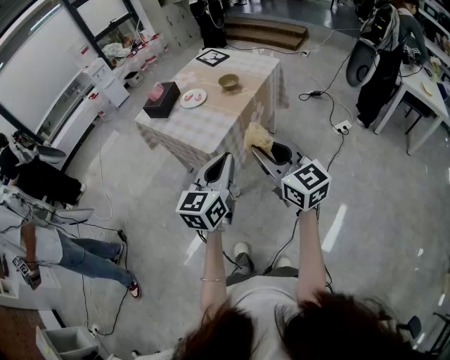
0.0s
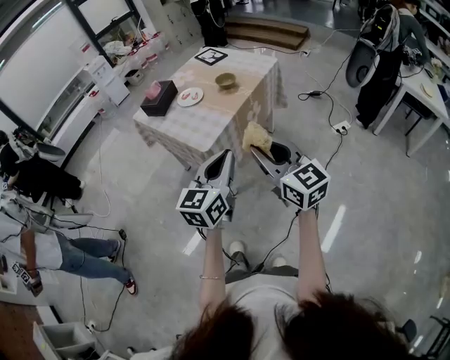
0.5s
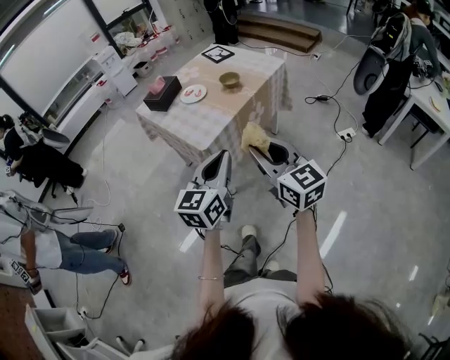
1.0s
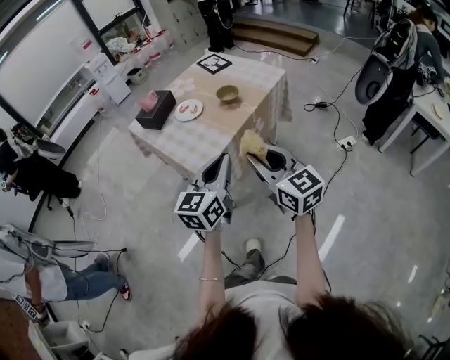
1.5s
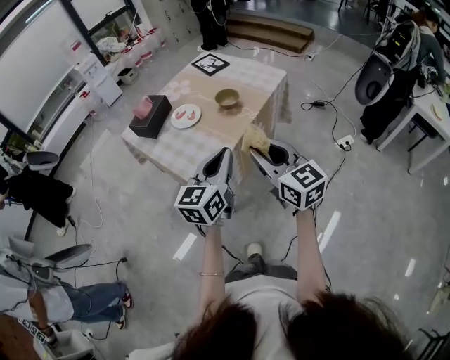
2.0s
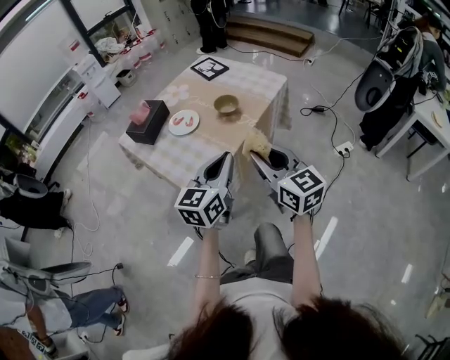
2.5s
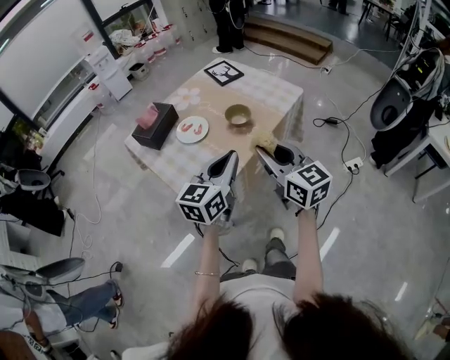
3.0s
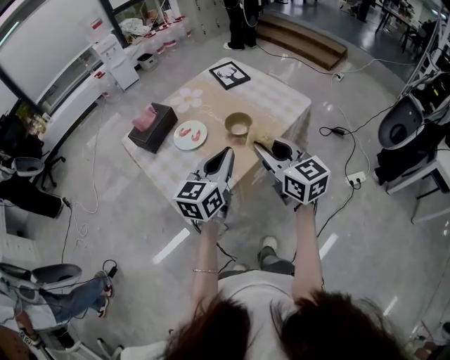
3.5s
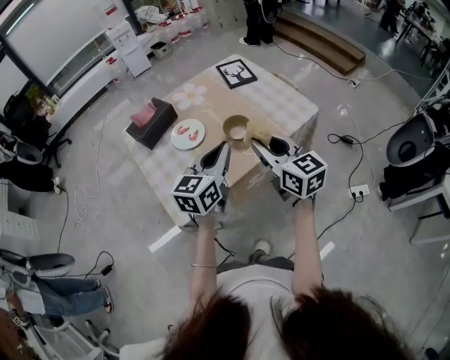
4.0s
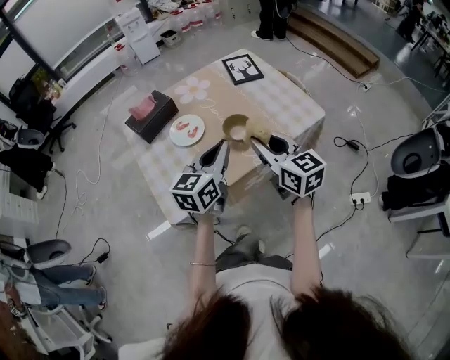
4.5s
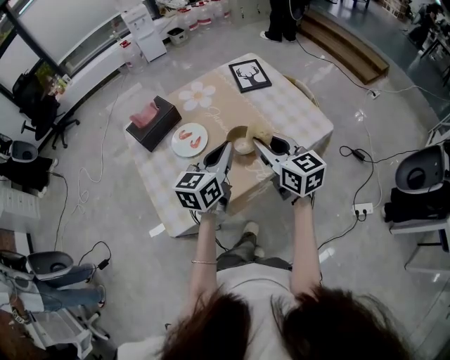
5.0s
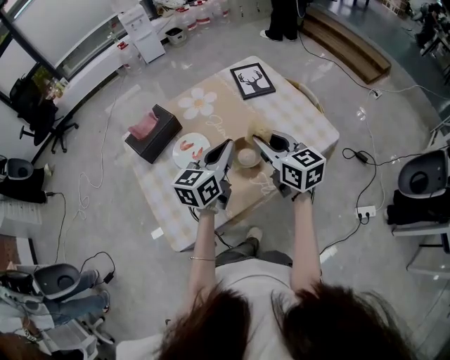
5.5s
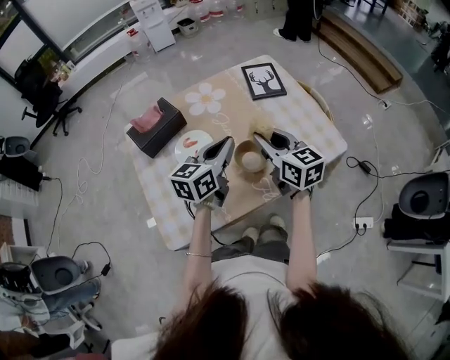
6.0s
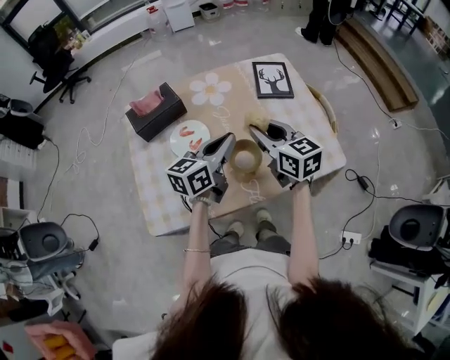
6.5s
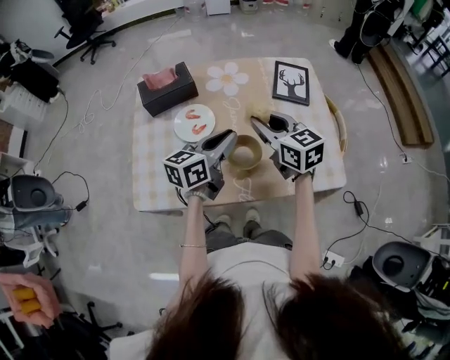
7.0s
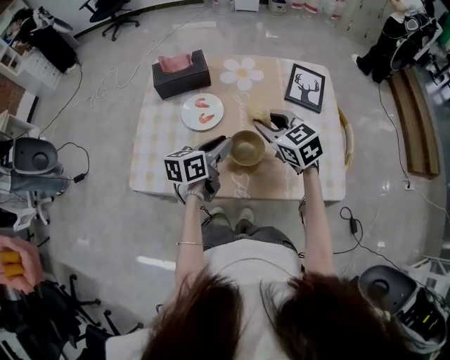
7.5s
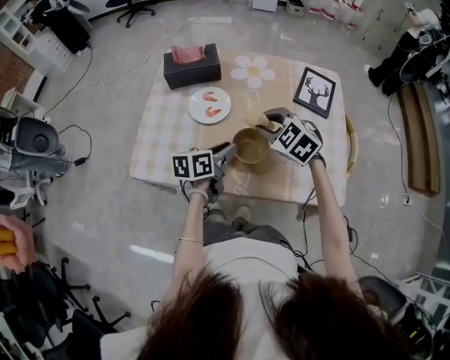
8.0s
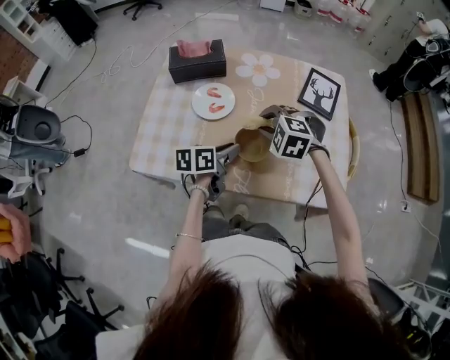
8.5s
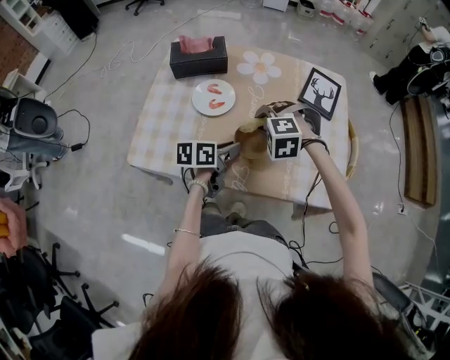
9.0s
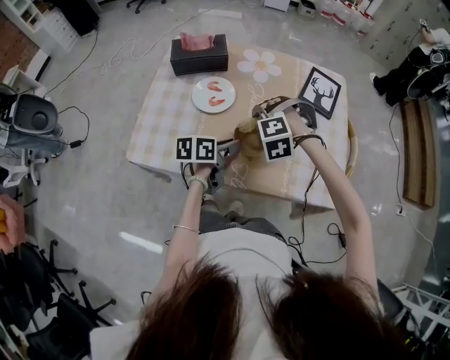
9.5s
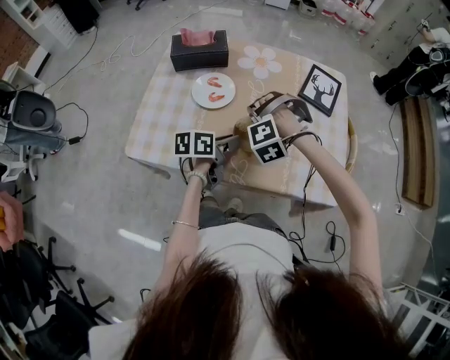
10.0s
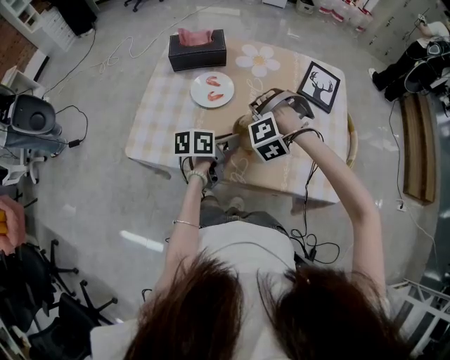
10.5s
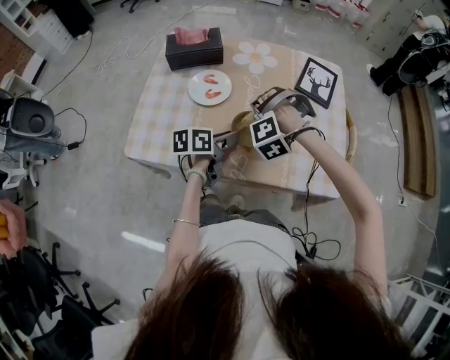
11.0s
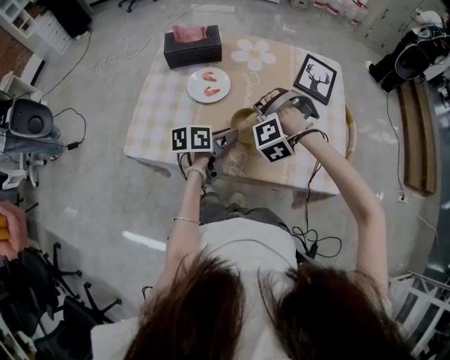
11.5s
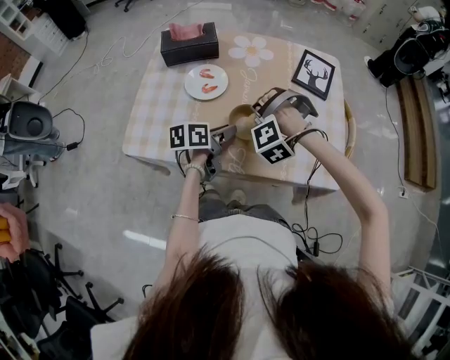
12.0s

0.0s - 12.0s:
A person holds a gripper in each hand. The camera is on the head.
0.0s - 2.0s: The grippers both shift forward by about 20 cm.
2.0s - 4.0s: The two grippers go some 25 cm forward.
4.0s - 6.0s: The two grippers go roughly 20 cm forward.
6.0s - 8.0s: The left gripper is displaced downward by some 15 cm, changes its angle by about 40 degrees, and opens up. Meanwhile the right gripper goes approximately 5 cm downward, and points its fingers about 30 degrees further downward.
8.0s - 10.0s: The right gripper travels downward by roughly 5 cm, and rotates around the line of its fingers by approximately 60 degrees, counterclockwise from behind.
10.0s - 12.0s: The grippers make only small movements.

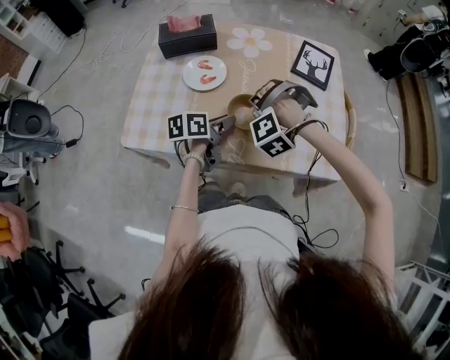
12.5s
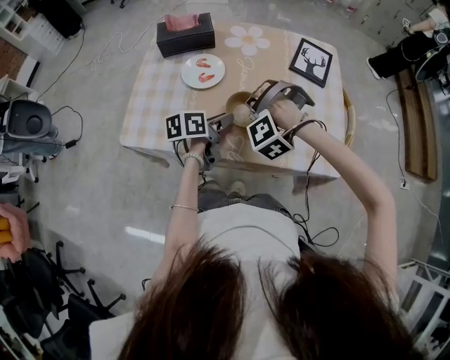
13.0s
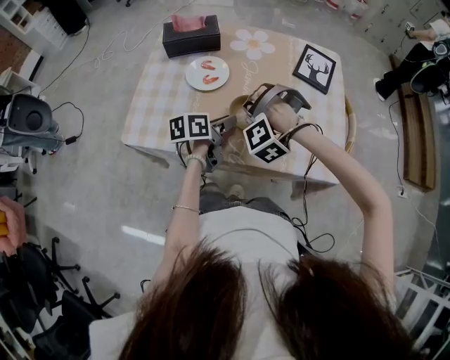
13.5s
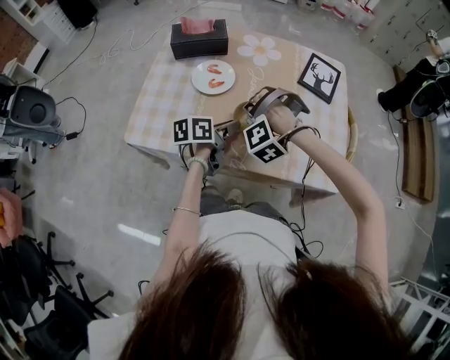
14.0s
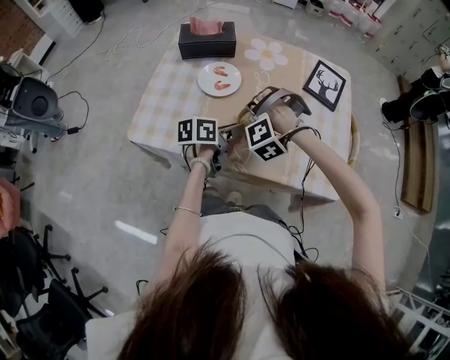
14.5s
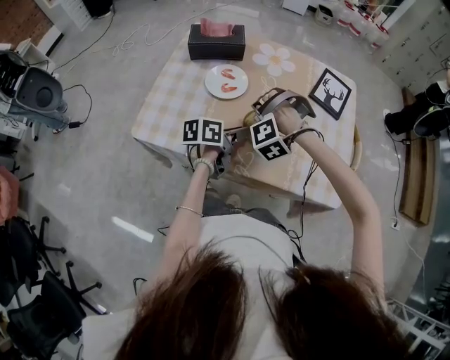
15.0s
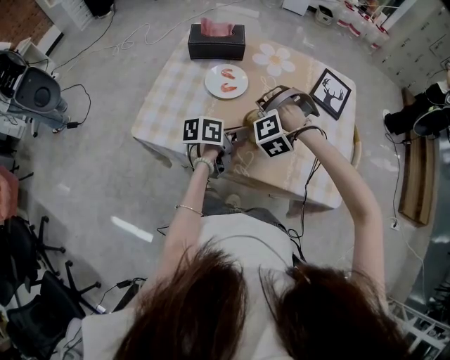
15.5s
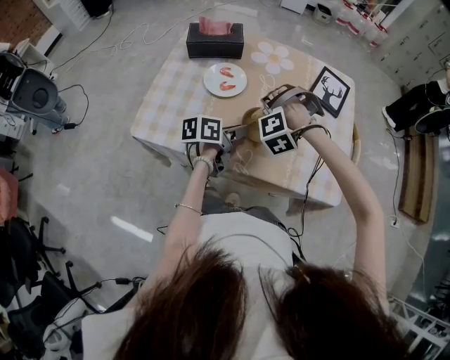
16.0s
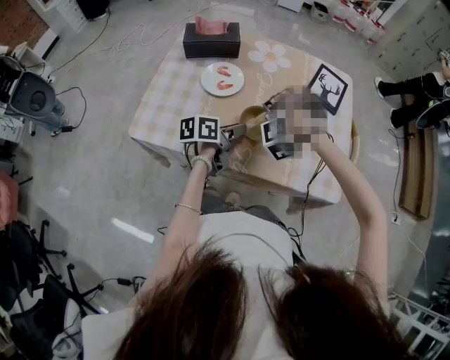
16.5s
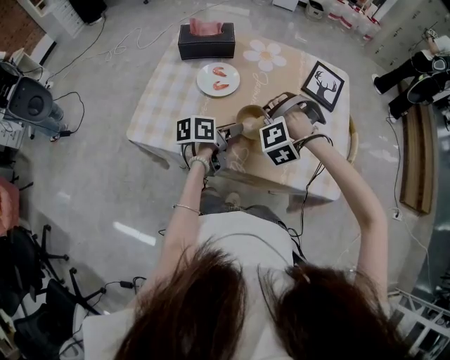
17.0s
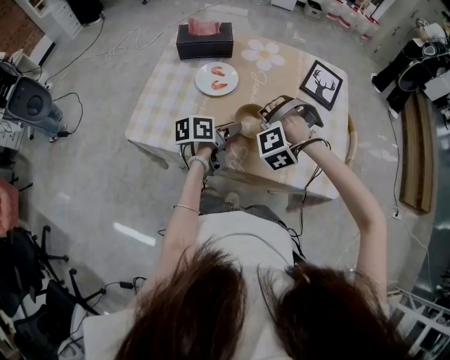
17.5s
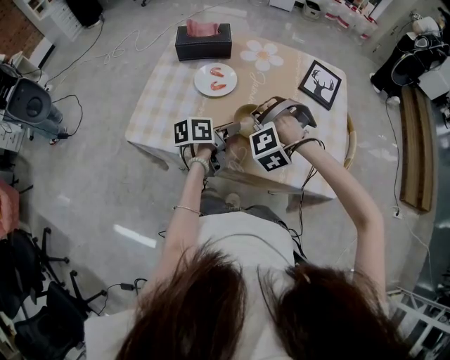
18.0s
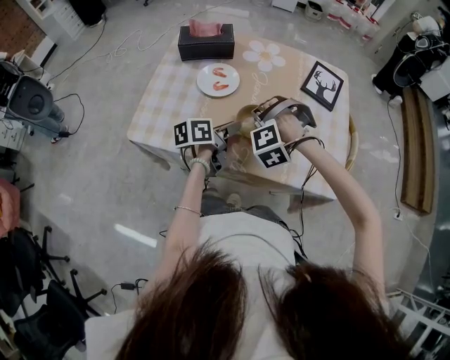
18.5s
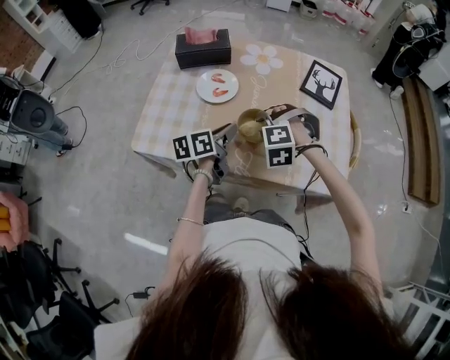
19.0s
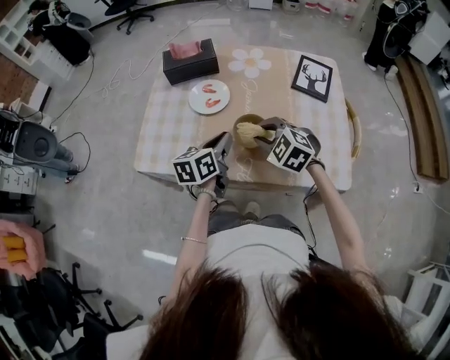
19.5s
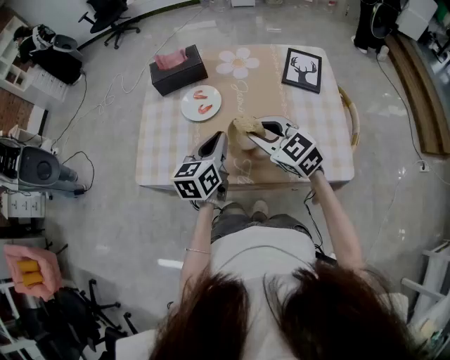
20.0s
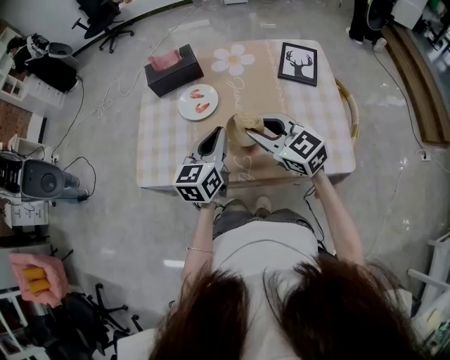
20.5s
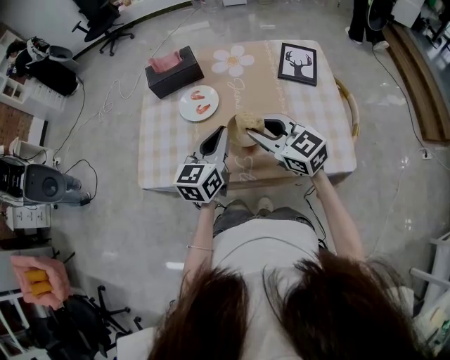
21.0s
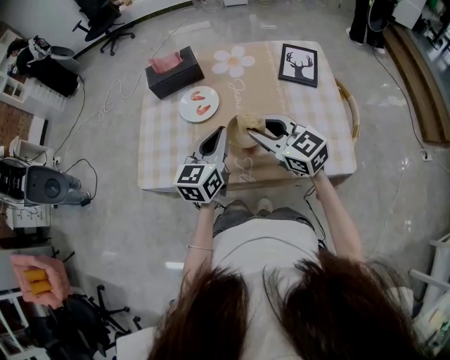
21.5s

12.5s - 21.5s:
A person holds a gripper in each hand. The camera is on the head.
12.5s - 17.0s: The grippers make only small movements.
17.0s - 19.5s: The left gripper changes place by roughly 5 cm, and rotates roughly 30 degrees. The right gripper rolls clockwise, seen from behind, by approximately 60 degrees.
19.5s - 21.5s: Both grippers travel together upward, about 5 cm. The left gripper swivels roughly 30 degrees, while the right gripper tips its fingers upward by about 30 degrees.

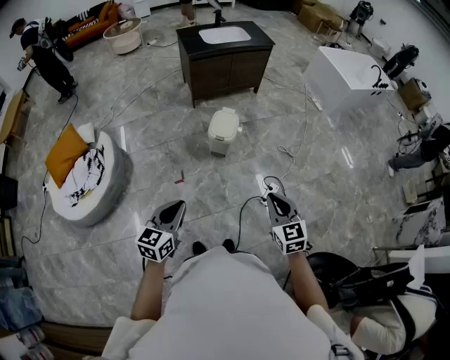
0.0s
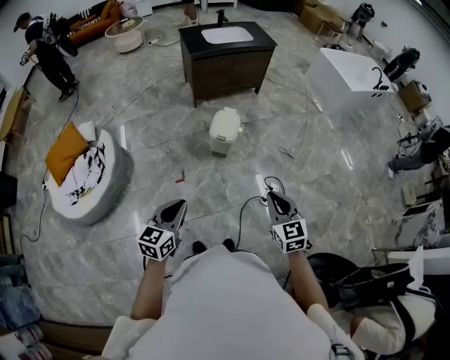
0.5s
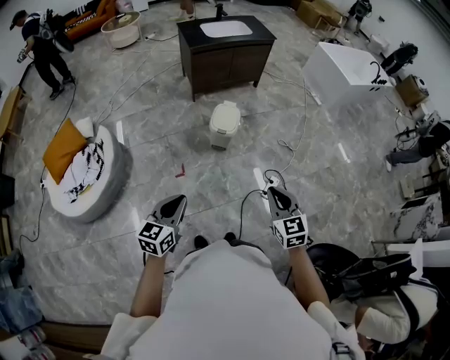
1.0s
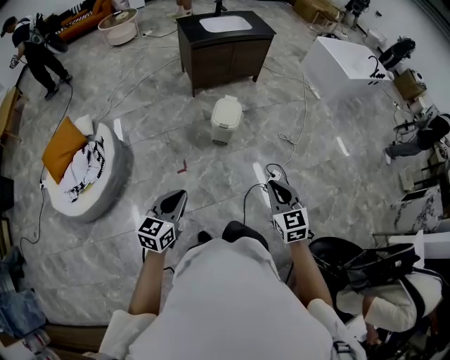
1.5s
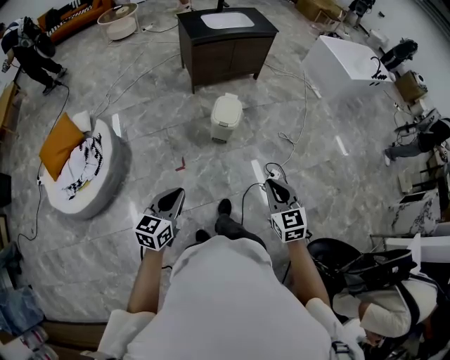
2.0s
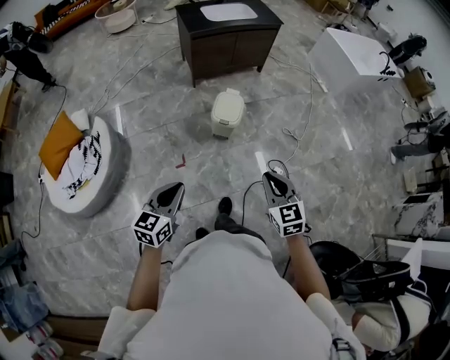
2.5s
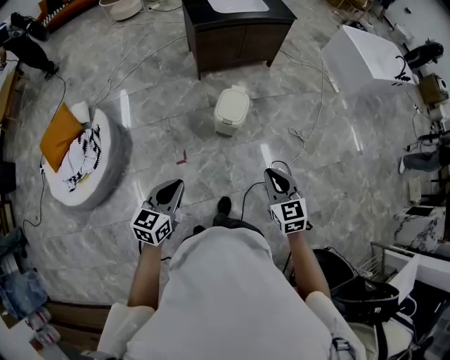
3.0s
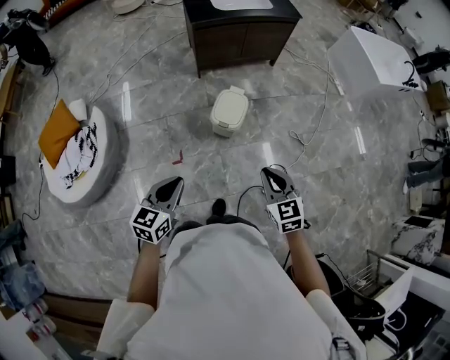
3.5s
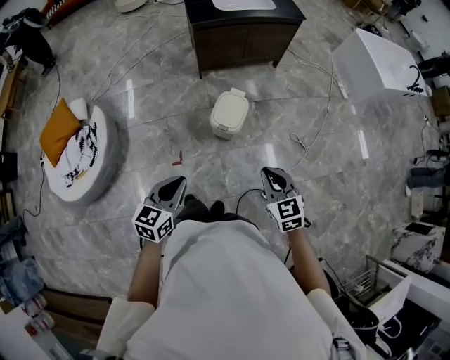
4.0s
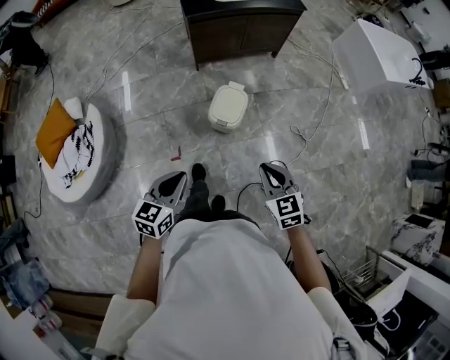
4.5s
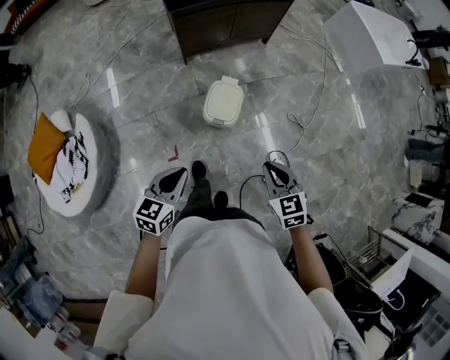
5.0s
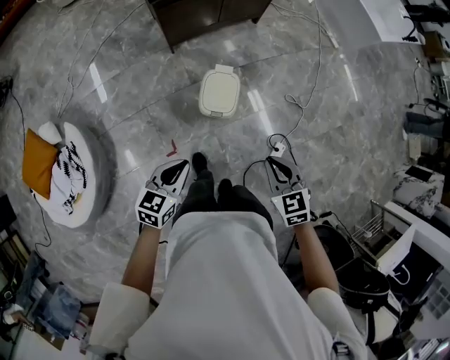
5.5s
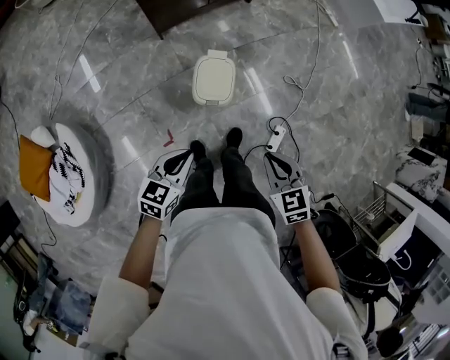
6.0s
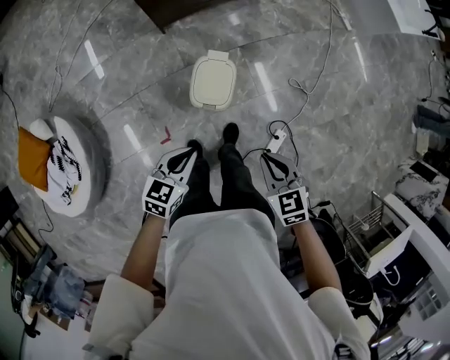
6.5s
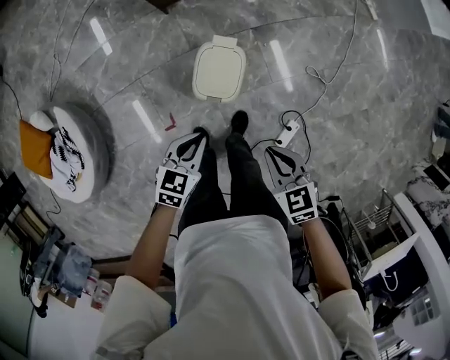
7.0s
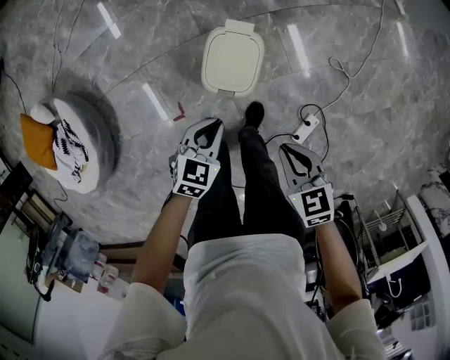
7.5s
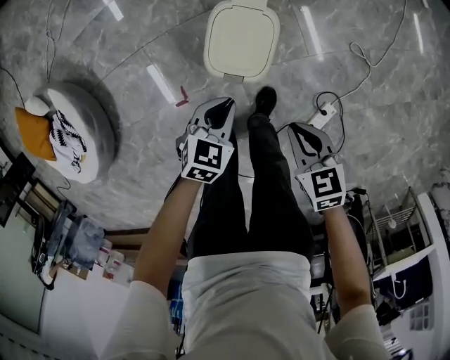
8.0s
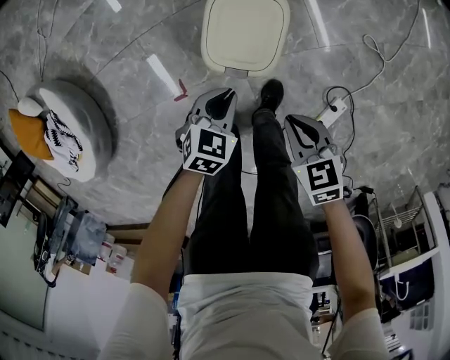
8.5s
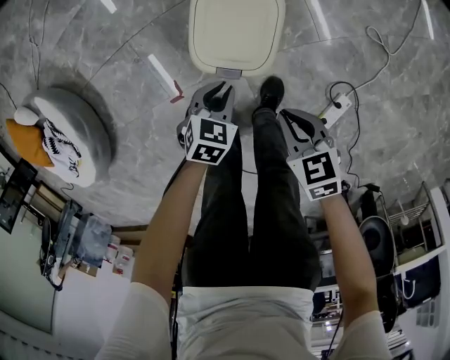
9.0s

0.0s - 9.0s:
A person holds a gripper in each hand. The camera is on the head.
0.0s - 2.0s: Both grippers travel together to the left, about 5 cm.
2.0s - 4.5s: Both grippers move forward, roughly 25 cm.
4.5s - 7.0s: The two grippers go about 25 cm forward and downward. The left gripper swivels about 30 degrees; the right gripper swivels approximately 20 degrees.
7.0s - 9.0s: The two grippers go some 30 cm downward.
